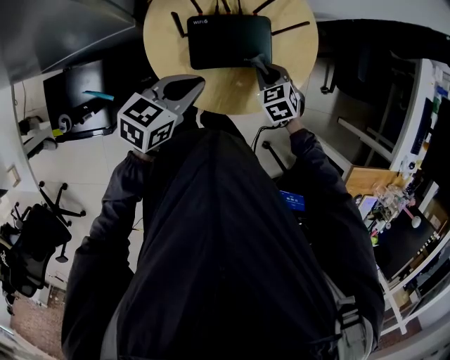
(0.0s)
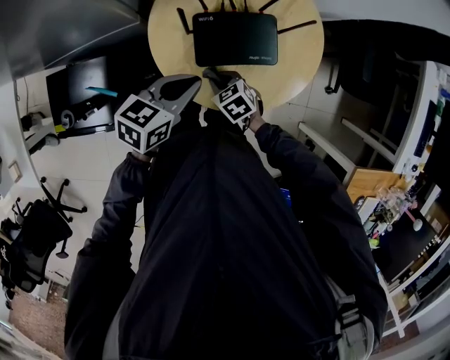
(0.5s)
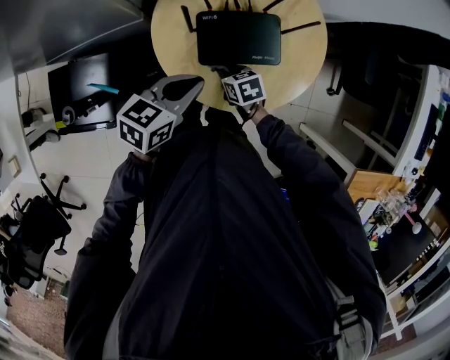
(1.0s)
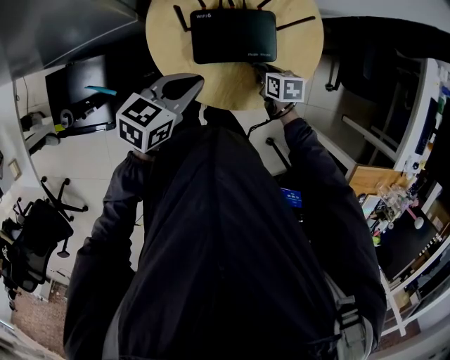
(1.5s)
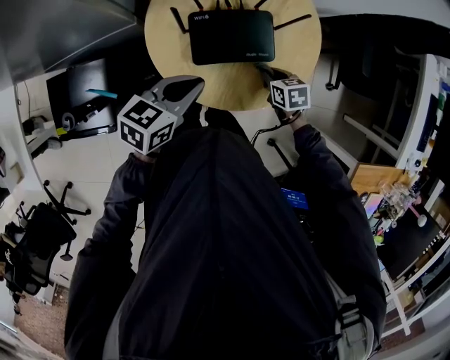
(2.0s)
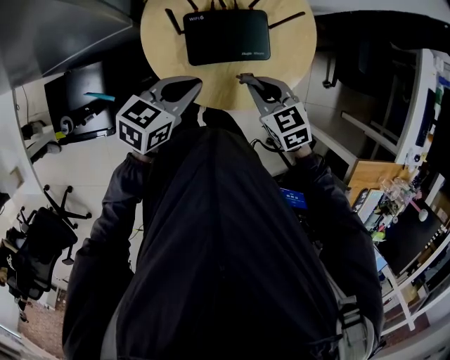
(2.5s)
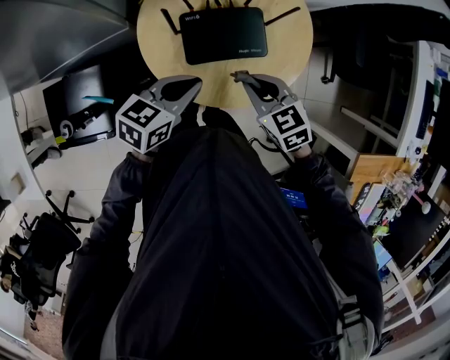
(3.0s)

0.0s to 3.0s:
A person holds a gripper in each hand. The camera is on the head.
0.0s to 1.5s: The right gripper travels downward by approximately 5 cm, goes to the left and returns, roughly 15 cm each way, and rotates around the line of its fingers by about 40 degrees, clockwise from behind.
1.5s to 3.0s: The right gripper travels upward by some 15 cm, and turns by some 40 degrees.

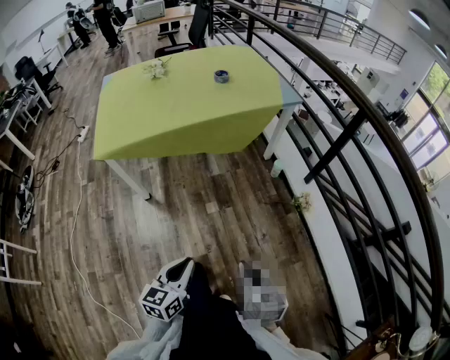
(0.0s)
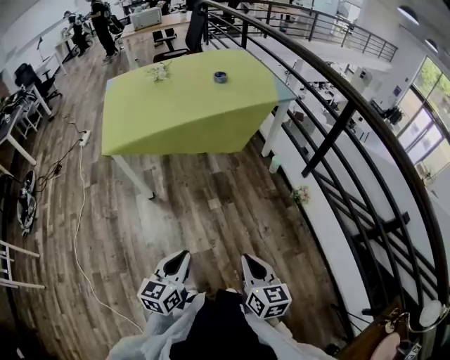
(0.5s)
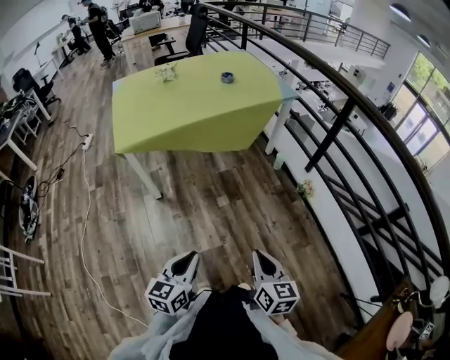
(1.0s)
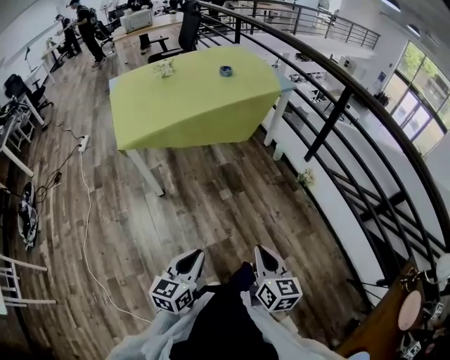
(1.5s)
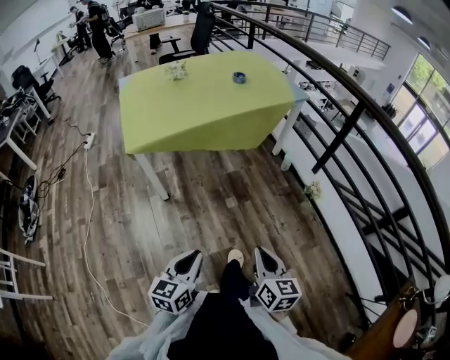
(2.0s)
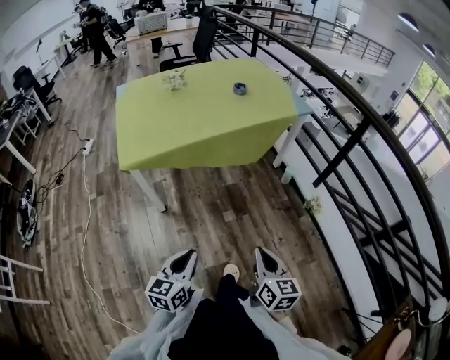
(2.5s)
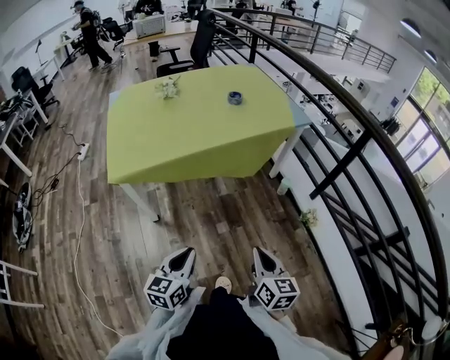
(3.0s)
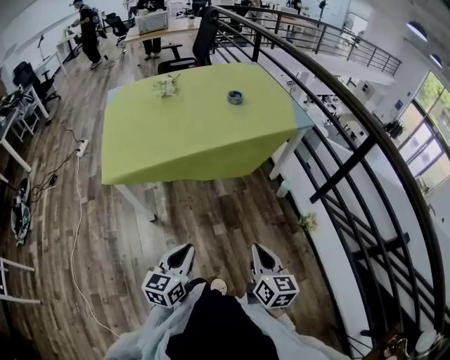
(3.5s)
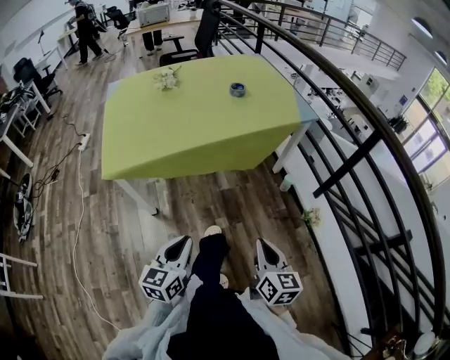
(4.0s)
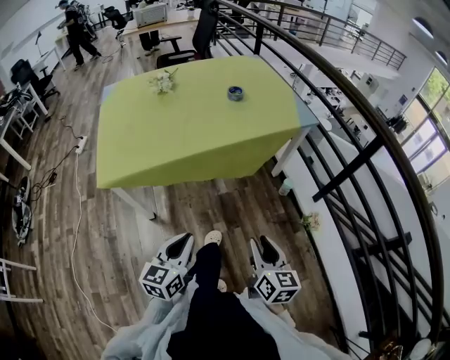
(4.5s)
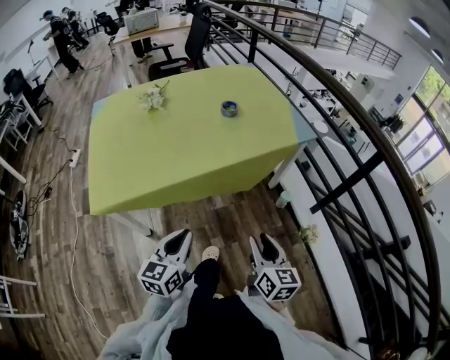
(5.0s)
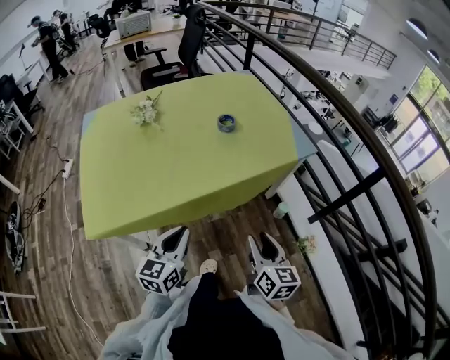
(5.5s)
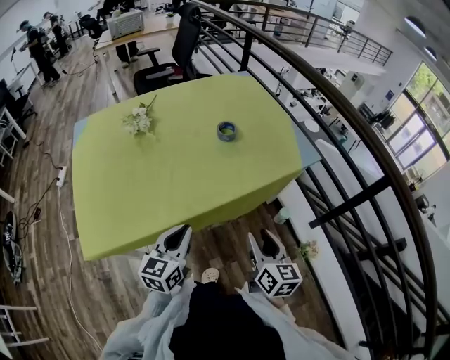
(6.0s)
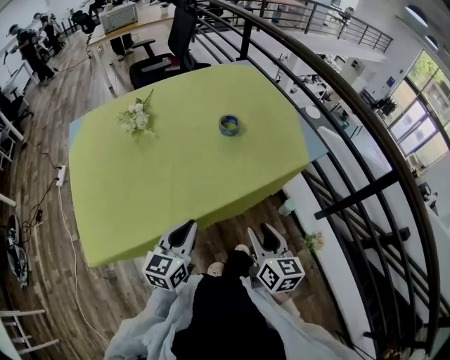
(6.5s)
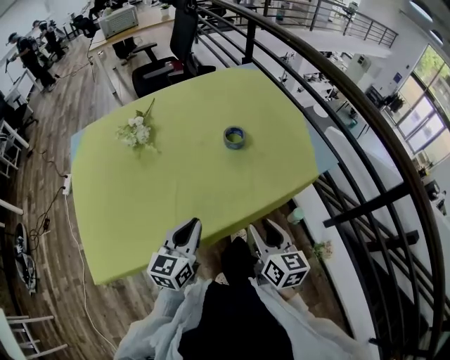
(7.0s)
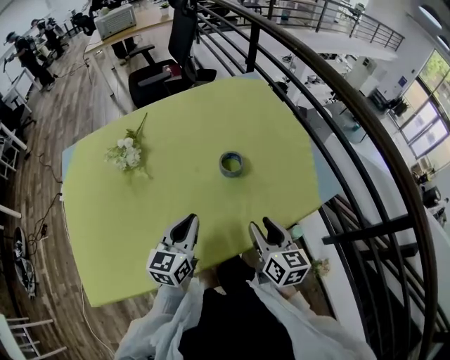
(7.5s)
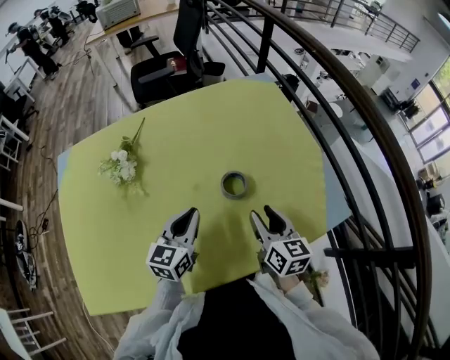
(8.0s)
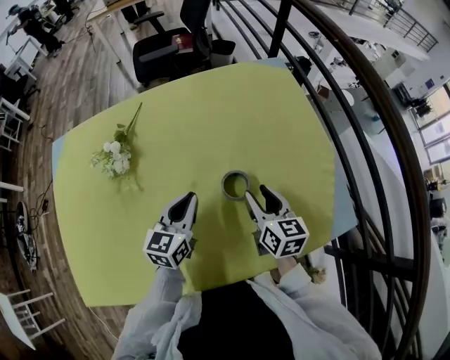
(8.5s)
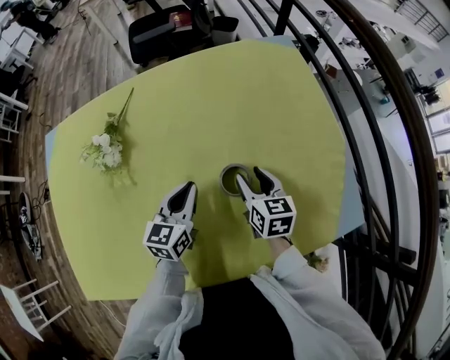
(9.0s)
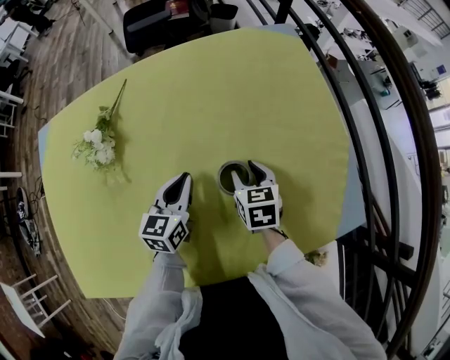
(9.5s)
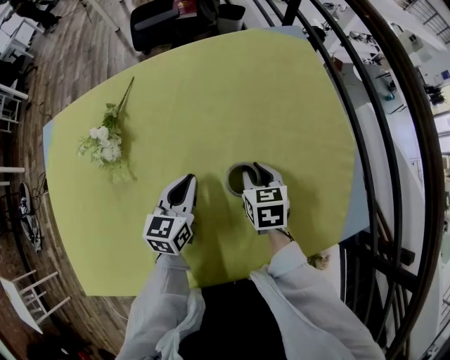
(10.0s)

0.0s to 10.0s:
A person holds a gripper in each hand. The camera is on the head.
0.0s to 2.0s: The grippers both shift to the left and backward by roughly 15 cm.
2.0s to 4.0s: The grippers both shift forward by about 25 cm.
4.0s to 6.0s: Both grippers move forward, about 35 cm. The right gripper opens.
6.0s to 8.0s: The grippers both shift forward by some 35 cm.
8.0s to 10.0s: Both grippers move forward and downward, roughly 15 cm. The right gripper changes its angle by approximately 30 degrees.

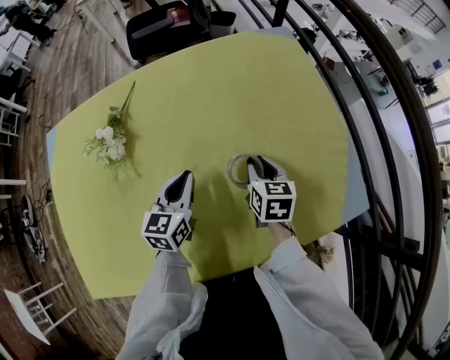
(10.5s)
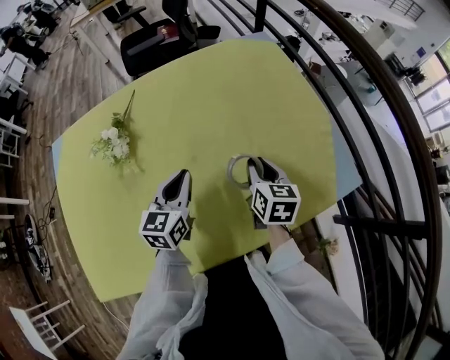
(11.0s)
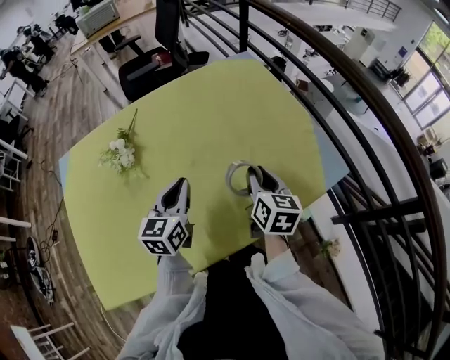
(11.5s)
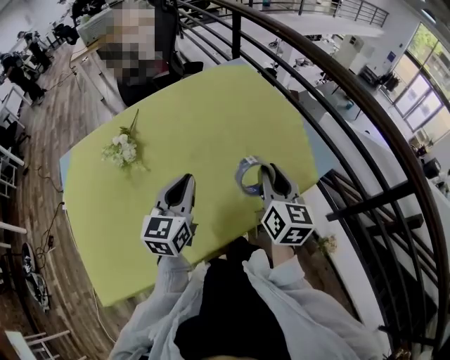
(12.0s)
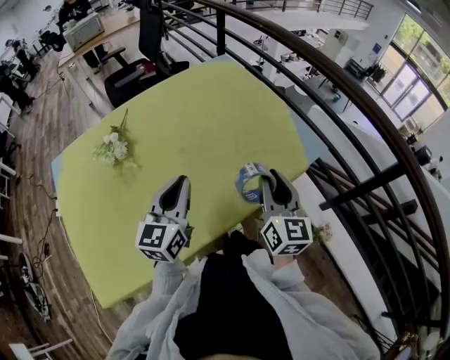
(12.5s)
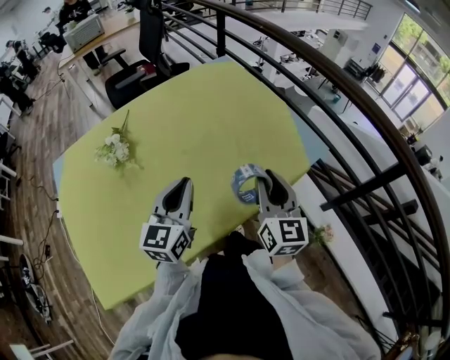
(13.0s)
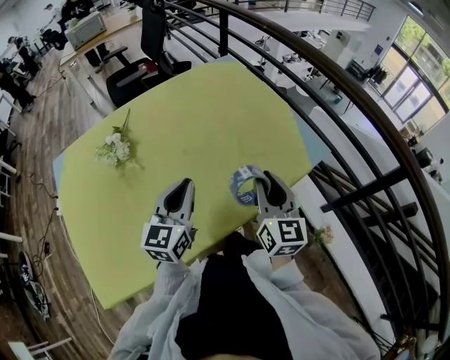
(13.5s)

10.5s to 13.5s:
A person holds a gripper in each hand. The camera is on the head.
10.5s to 12.0s: The right gripper heads backward and upward, covering roughly 25 cm, and changes its angle by about 30 degrees; the left gripper travels upward and backward by about 20 cm.
12.0s to 13.5s: The right gripper is displaced backward by some 5 cm.

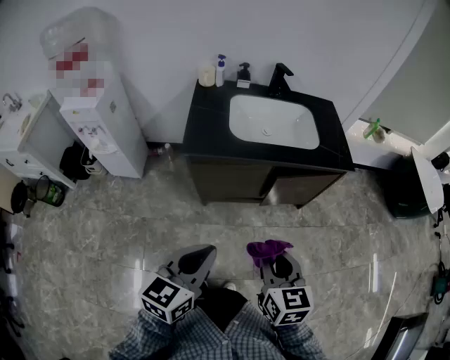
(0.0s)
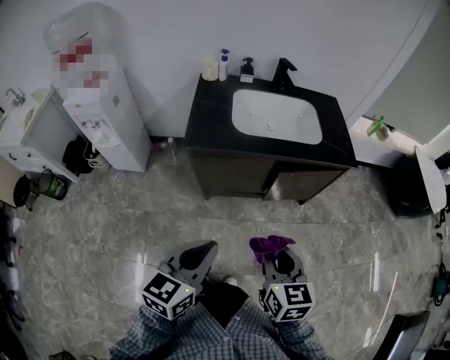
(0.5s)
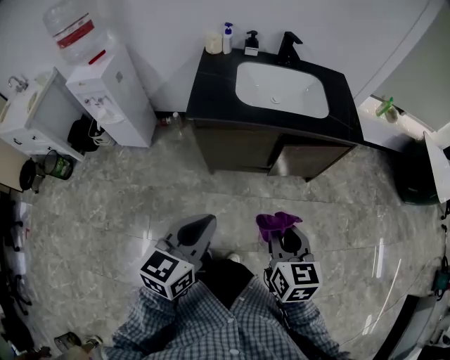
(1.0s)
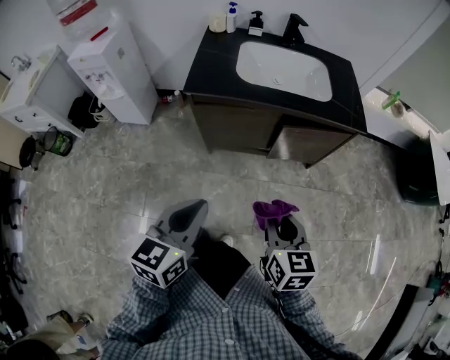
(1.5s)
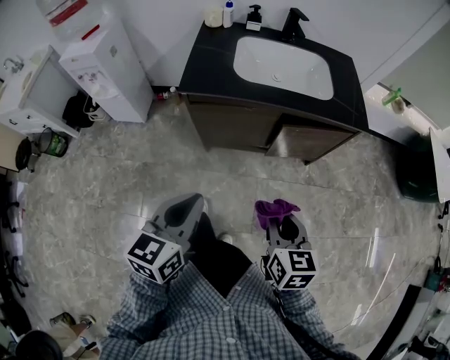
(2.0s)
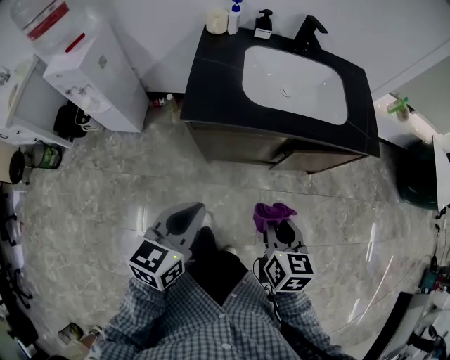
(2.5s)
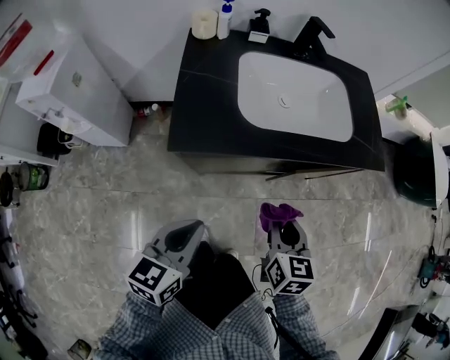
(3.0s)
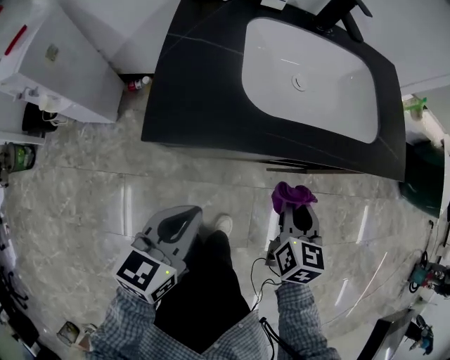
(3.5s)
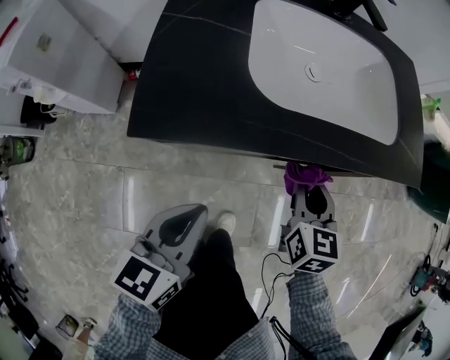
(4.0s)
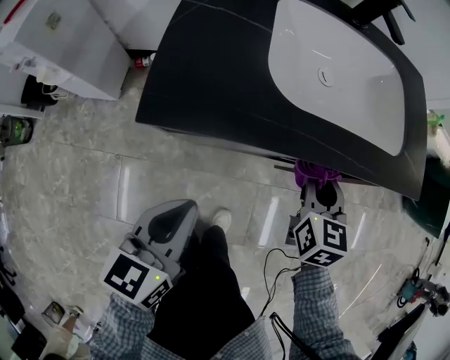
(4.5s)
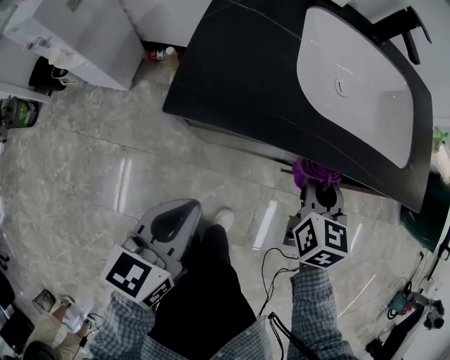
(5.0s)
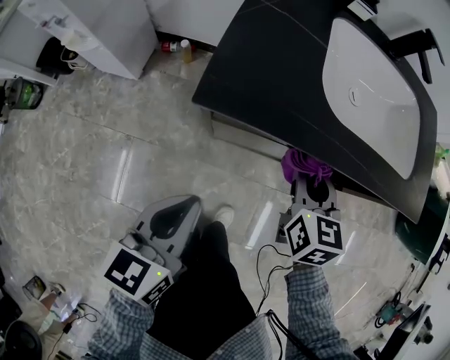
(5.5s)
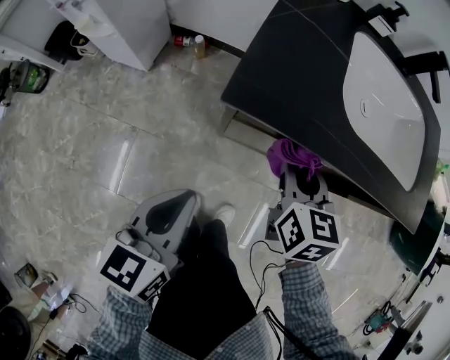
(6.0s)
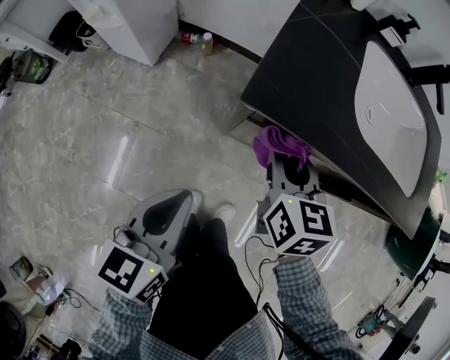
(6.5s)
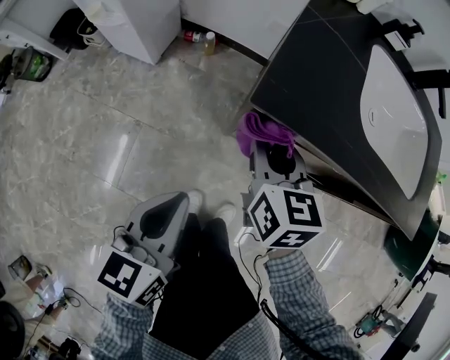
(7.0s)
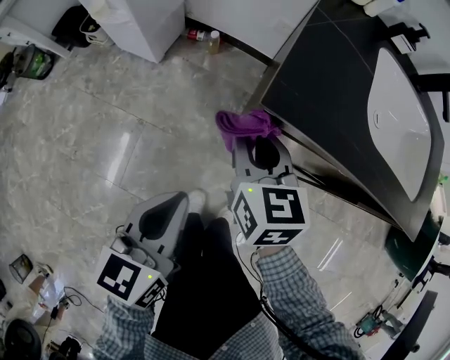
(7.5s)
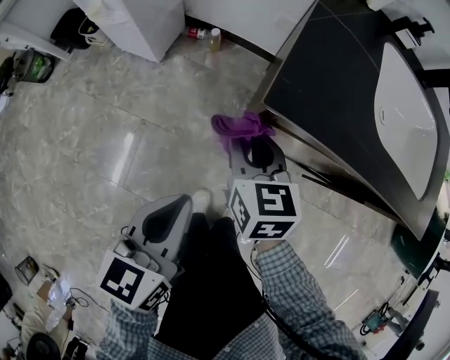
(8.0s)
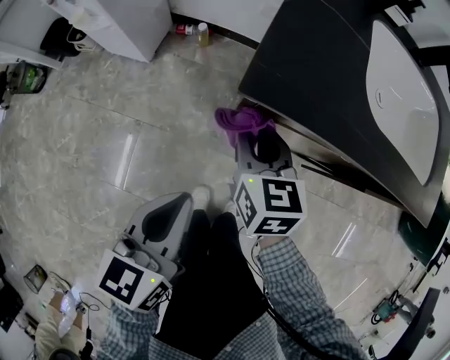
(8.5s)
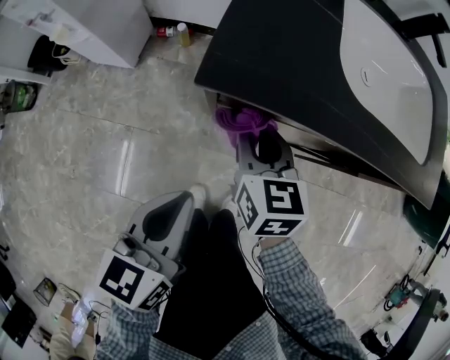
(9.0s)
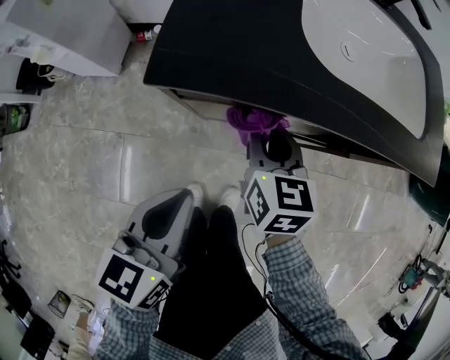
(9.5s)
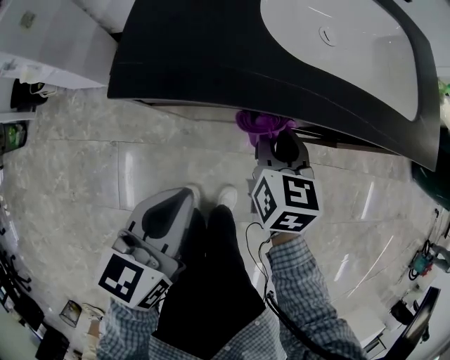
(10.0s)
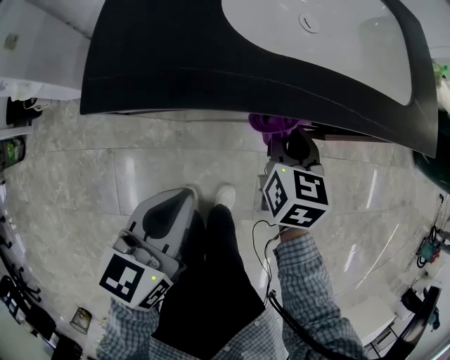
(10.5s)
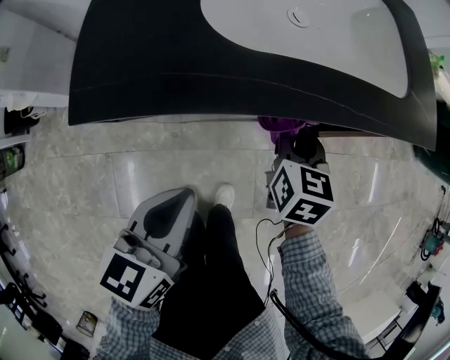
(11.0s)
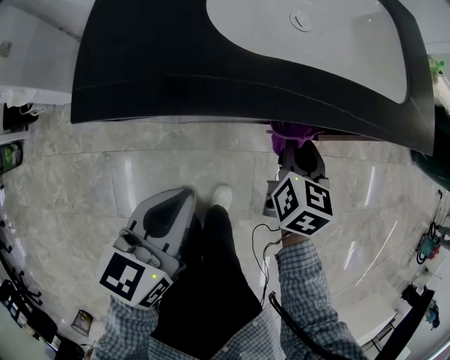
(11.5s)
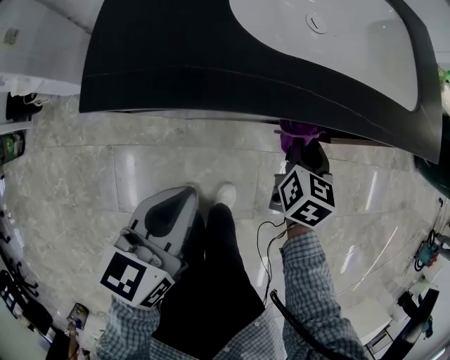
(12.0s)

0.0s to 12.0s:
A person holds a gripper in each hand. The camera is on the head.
0.0s to 2.0s: The right gripper travels to the right and downward by some 10 cm.
2.0s to 4.0s: Both grippers move forward and downward, roughly 35 cm.
4.0s to 6.0s: The left gripper goes approximately 15 cm to the left and backward, while the right gripper goes about 20 cm to the left.
6.0s to 8.0s: The right gripper goes approximately 20 cm to the left, while the left gripper shifts approximately 5 cm to the left.
8.0s to 10.0s: The right gripper travels to the right by some 25 cm, and swivels approximately 30 degrees. The left gripper moves to the right, approximately 15 cm.
10.0s to 12.0s: The right gripper is displaced to the right and downward by roughly 15 cm.
